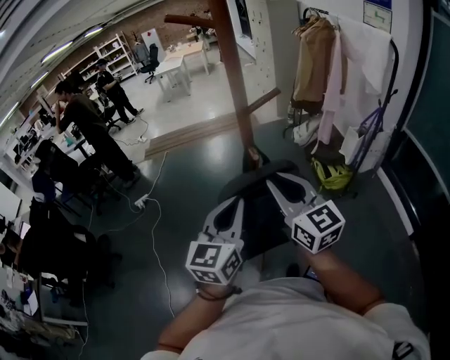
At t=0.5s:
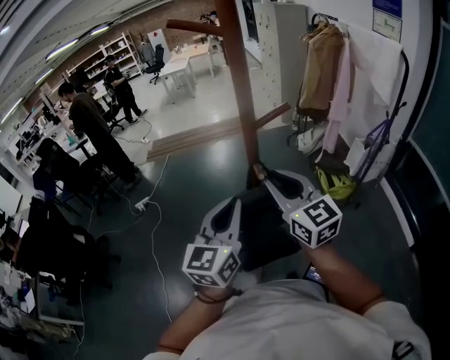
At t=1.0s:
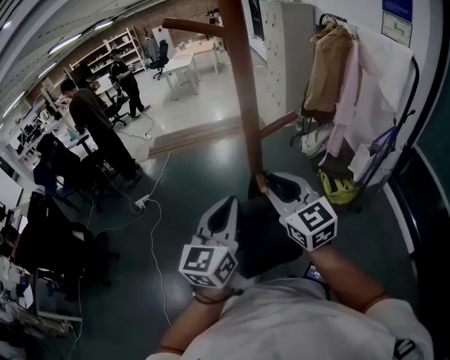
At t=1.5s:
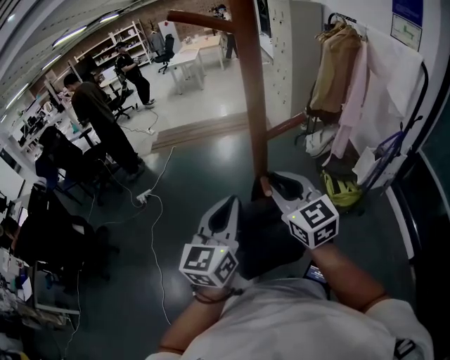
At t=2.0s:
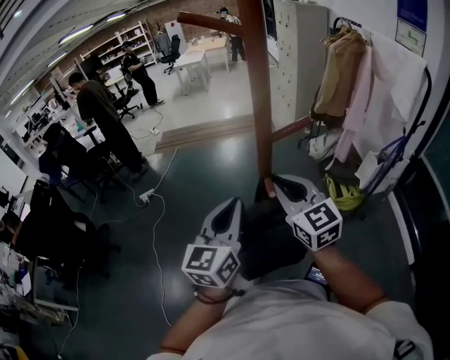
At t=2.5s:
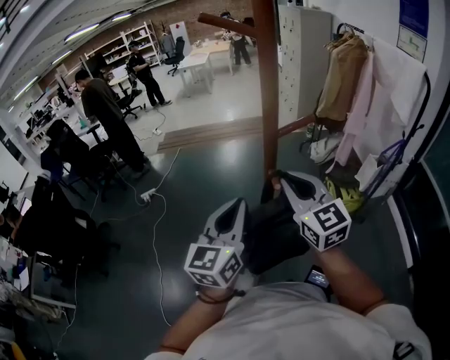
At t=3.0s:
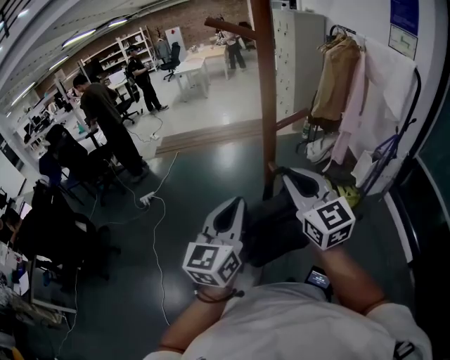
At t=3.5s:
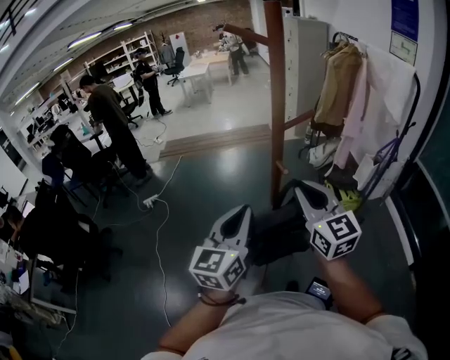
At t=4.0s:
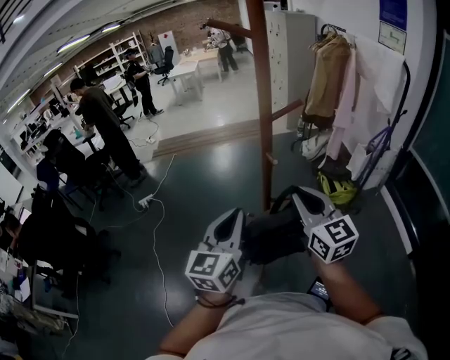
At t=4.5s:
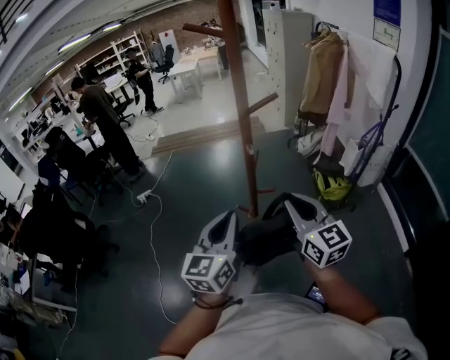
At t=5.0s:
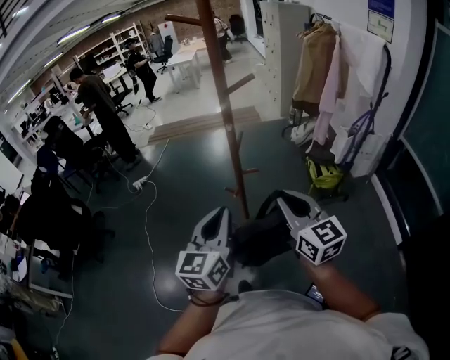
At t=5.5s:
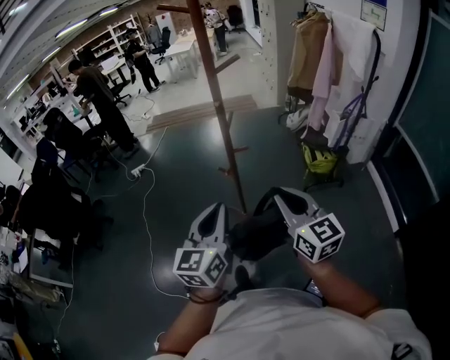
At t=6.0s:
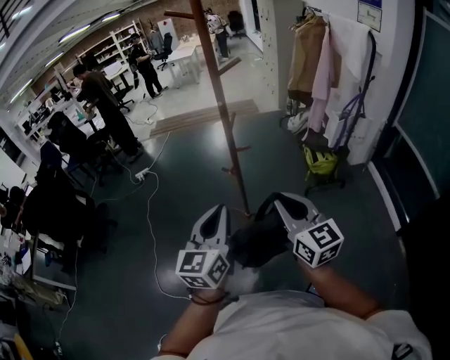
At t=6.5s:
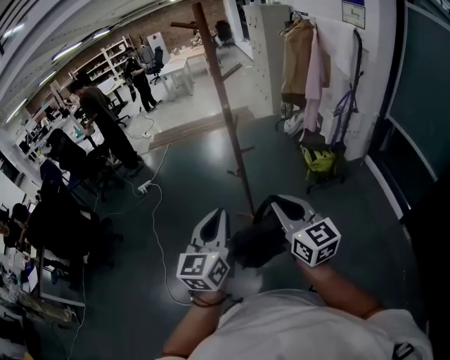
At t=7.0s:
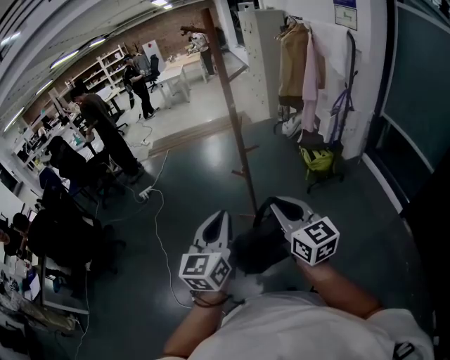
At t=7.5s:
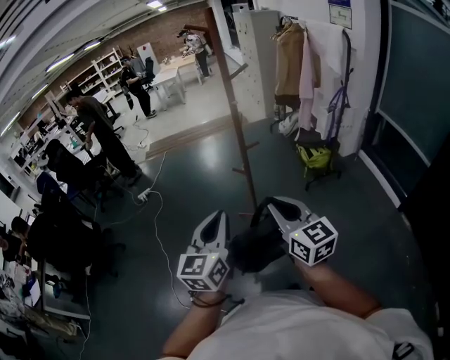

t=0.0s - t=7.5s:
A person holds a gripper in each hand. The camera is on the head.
t=0.0s - t=2.0s: Both grippers travel together forward, about 10 cm.
t=2.0s - t=4.0s: Both grippers travel together backward, some 15 cm.
t=4.0s - t=5.5s: The grippers both shift backward and to the right by roughly 25 cm.
t=5.5s - t=7.5s: Both grippers travel together to the left and backward, about 20 cm.

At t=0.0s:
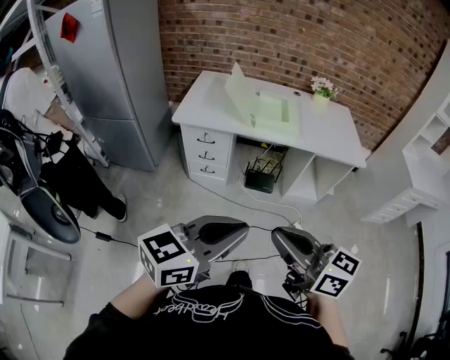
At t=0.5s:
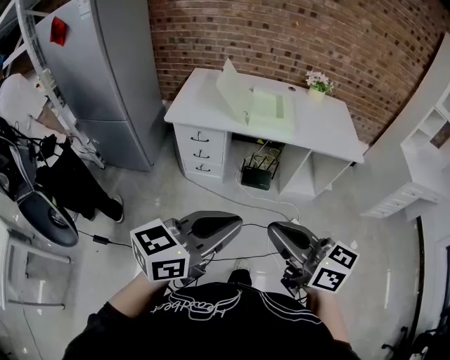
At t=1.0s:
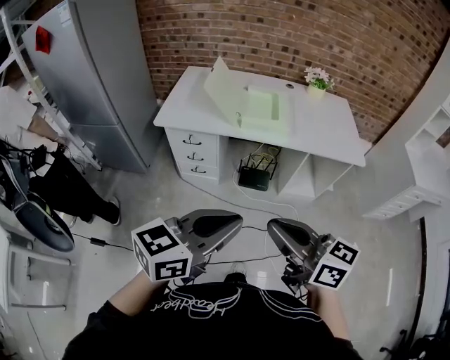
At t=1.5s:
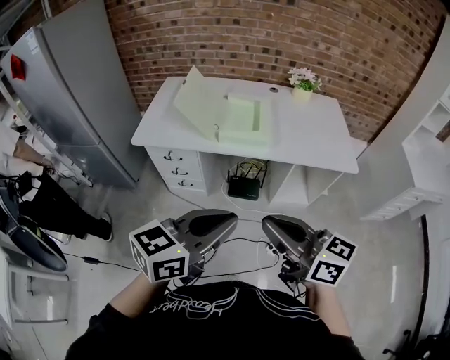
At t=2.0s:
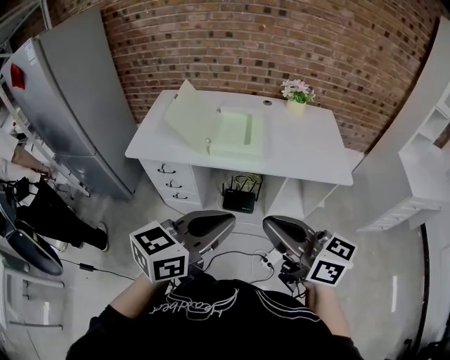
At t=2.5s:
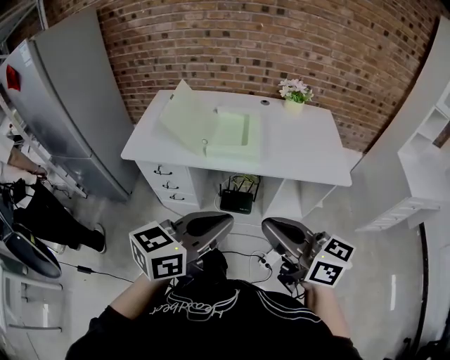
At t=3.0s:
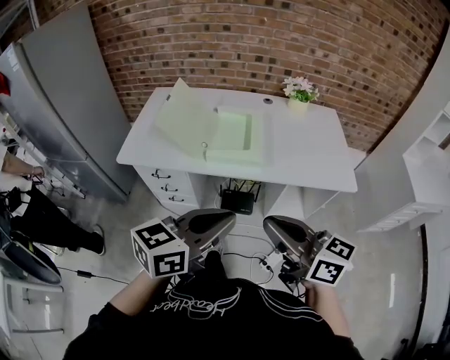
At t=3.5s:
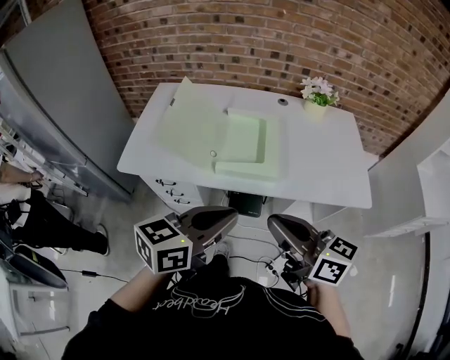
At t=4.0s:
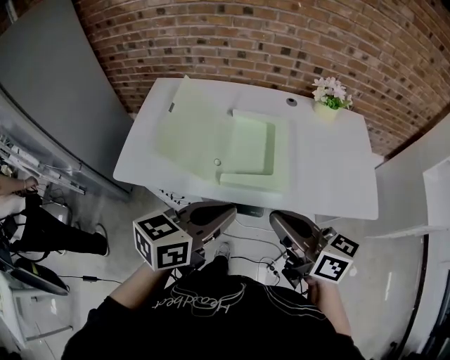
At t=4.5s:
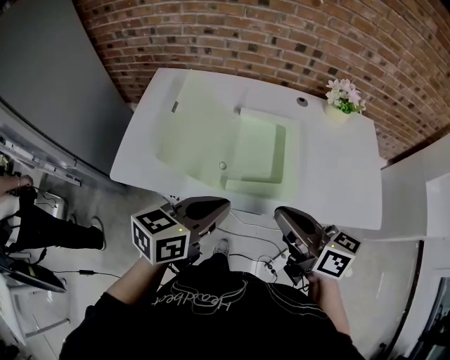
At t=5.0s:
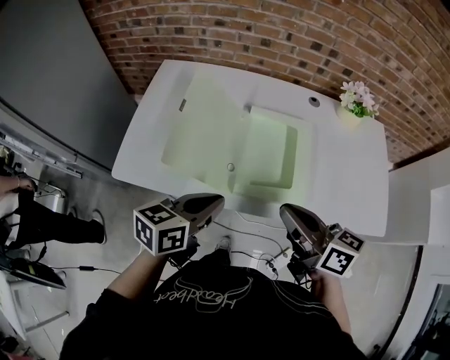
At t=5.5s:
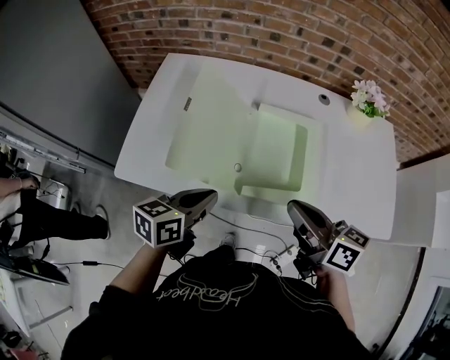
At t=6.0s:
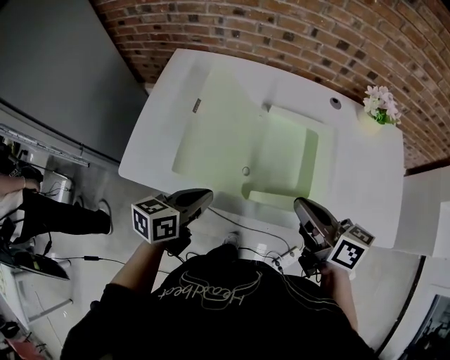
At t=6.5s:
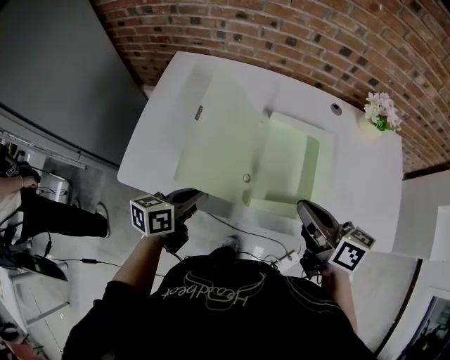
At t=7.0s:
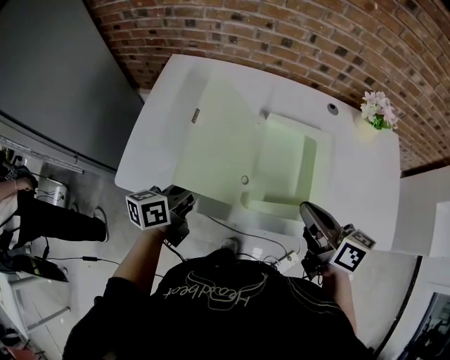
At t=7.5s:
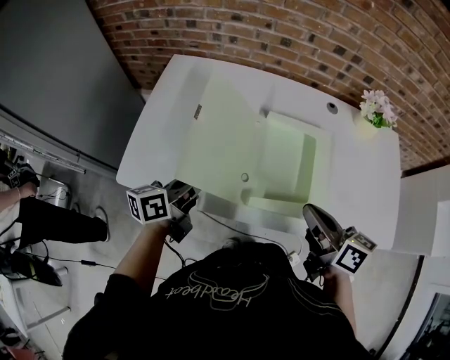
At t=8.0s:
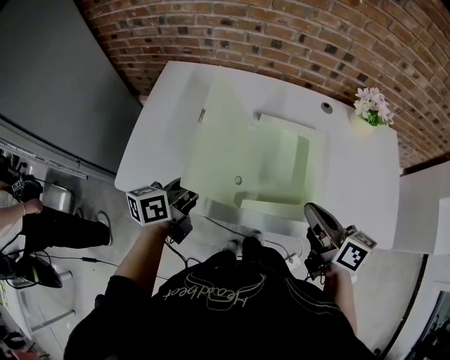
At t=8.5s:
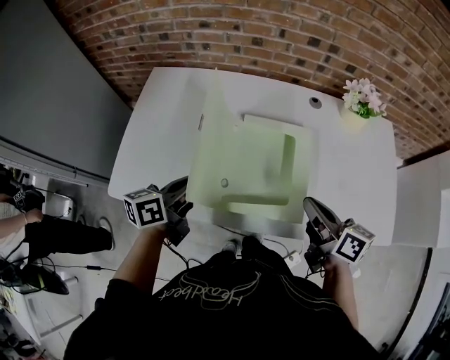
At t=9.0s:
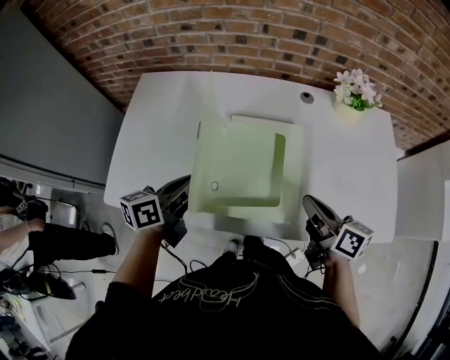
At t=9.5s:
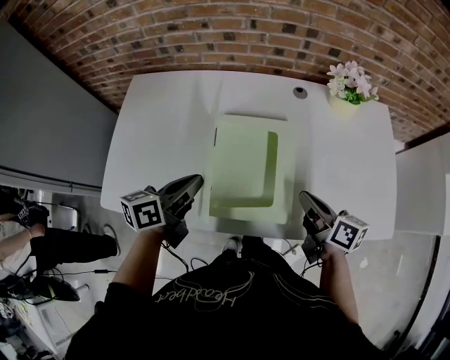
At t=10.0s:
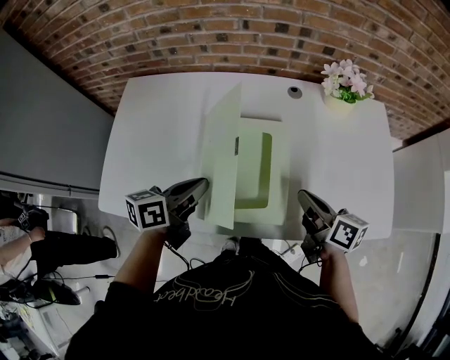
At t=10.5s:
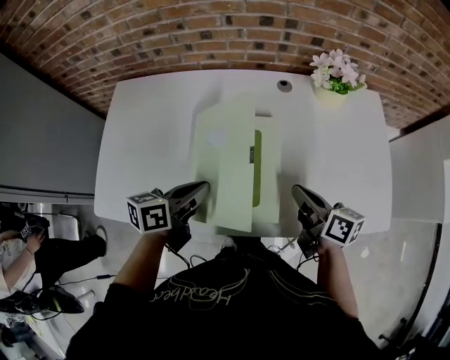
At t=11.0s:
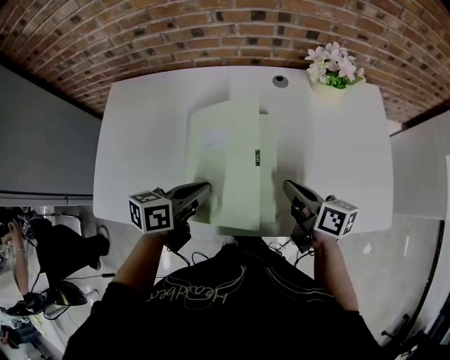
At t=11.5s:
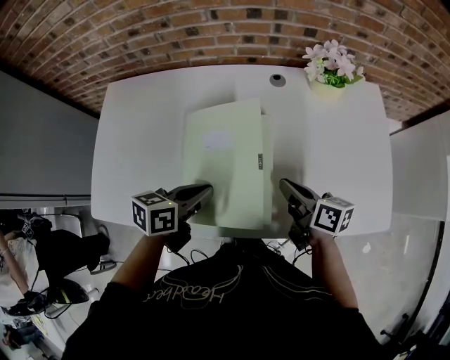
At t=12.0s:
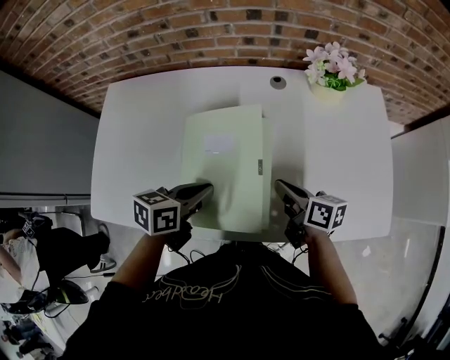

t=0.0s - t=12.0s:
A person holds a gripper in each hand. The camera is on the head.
t=0.0s - t=2.0s: Both grippers travel together forward and to the right, some 25 cm.
t=2.0s - t=4.0s: The two grippers go about 25 cm forward.
t=4.0s - t=6.0s: The right gripper travels forward and downward by approximately 15 cm, while the left gripper moves downward, to the left and forward, some 25 cm, and turns by about 20 degrees.
t=6.0s - t=8.0s: The right gripper is displaced to the right by about 5 cm. The left gripper shifts about 5 cm forward.
t=8.0s - t=10.0s: The left gripper is displaced to the right by some 10 cm, while the right gripper heads to the right, downward and forward, covering roughly 15 cm.
t=10.0s - t=12.0s: The left gripper goes some 5 cm to the right. The right gripper is displaced downward by approximately 5 cm.

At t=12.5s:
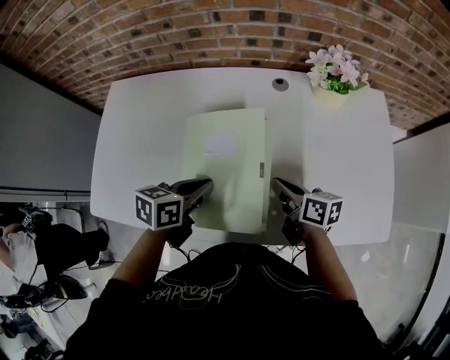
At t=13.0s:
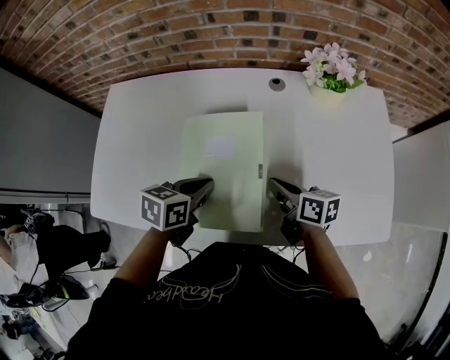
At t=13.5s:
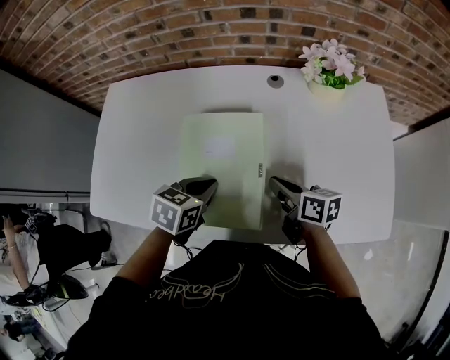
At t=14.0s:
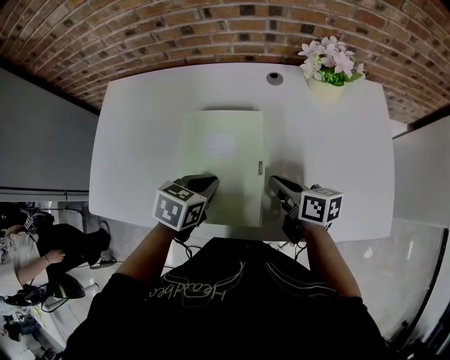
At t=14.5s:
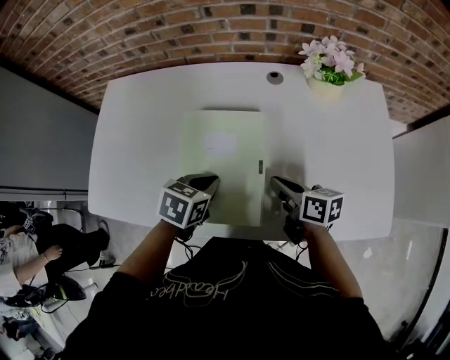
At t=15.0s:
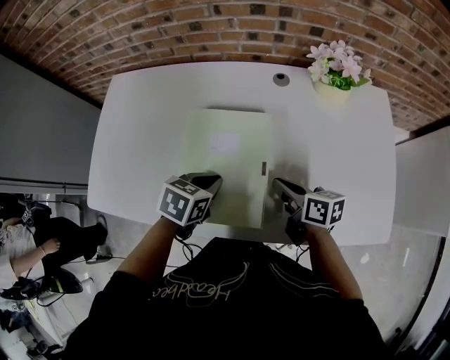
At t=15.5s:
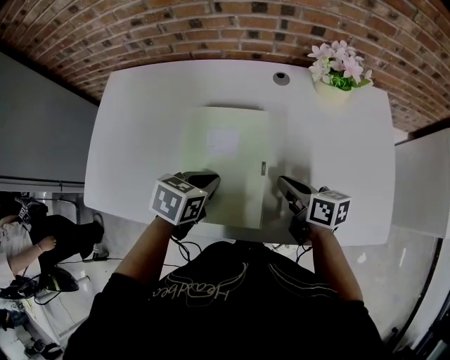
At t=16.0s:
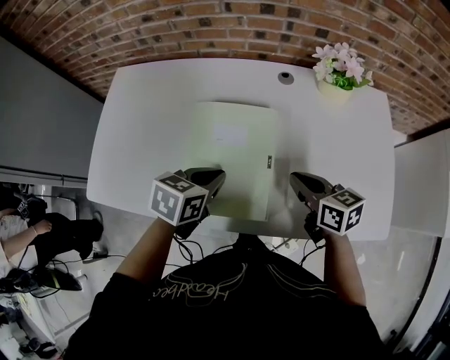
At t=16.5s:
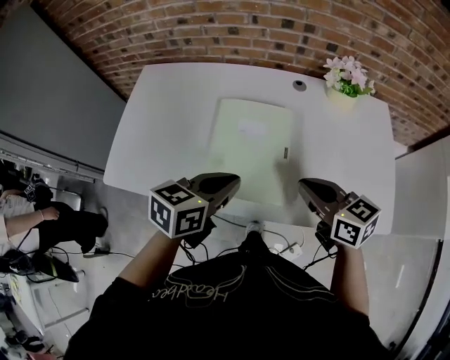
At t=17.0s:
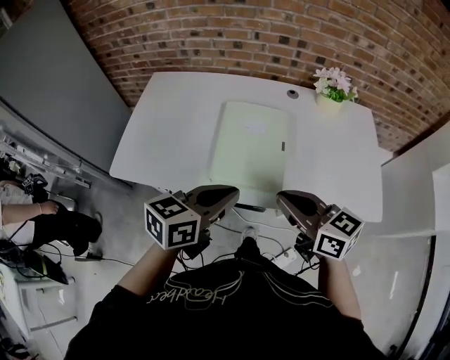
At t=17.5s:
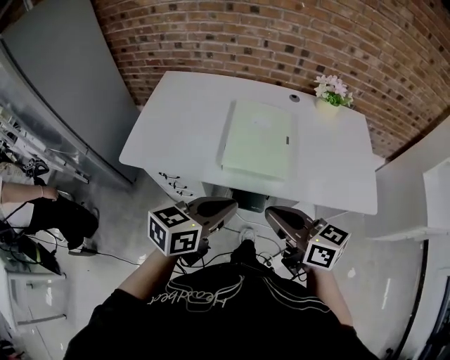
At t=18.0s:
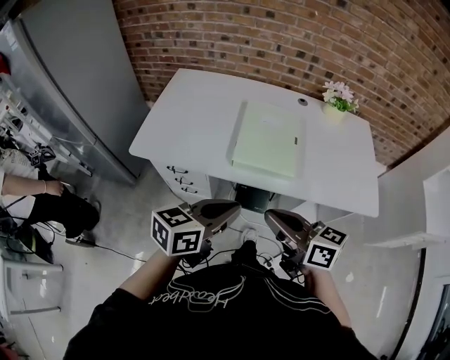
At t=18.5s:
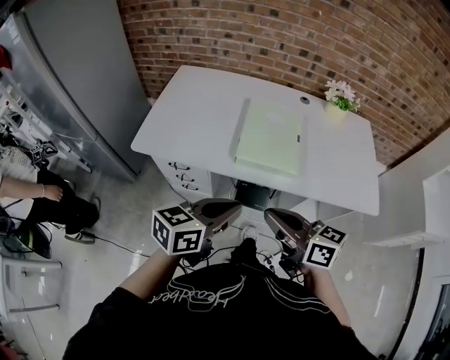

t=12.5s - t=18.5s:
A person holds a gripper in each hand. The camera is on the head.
t=12.5s - t=14.5s: The left gripper rotates some 20 degrees.
t=14.5s - t=16.5s: Both grippers travel together upward and backward, some 15 cm. The right gripper changes its angle by roughly 30 degrees. Meanwhile the left gripper changes its angle by approximately 30 degrees.
t=16.5s - t=18.5s: The left gripper shifts about 25 cm backward, while the right gripper shifts some 30 cm backward and to the left.

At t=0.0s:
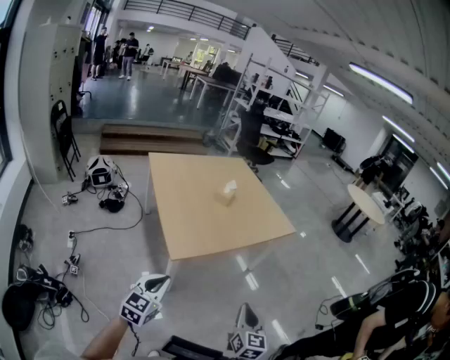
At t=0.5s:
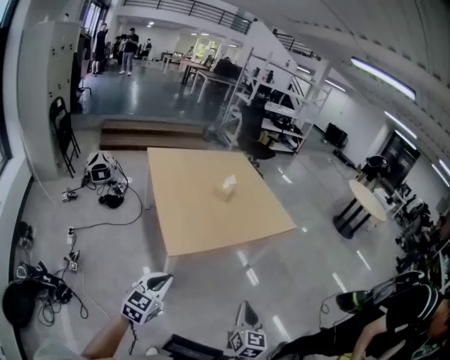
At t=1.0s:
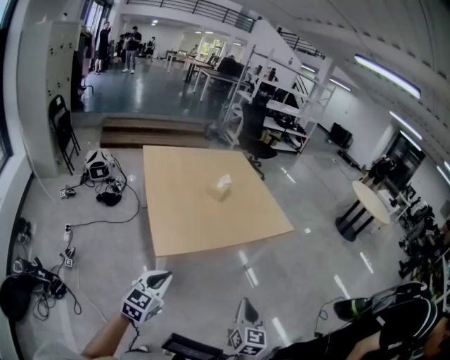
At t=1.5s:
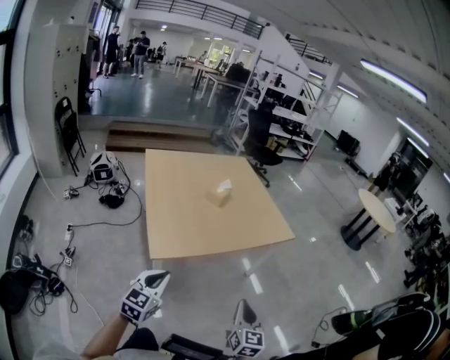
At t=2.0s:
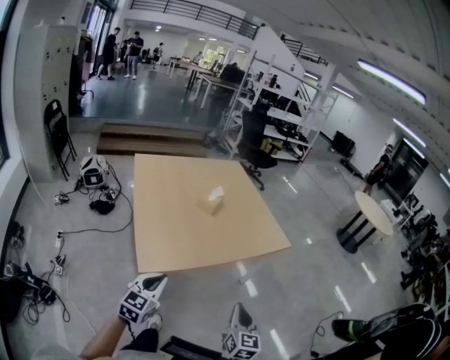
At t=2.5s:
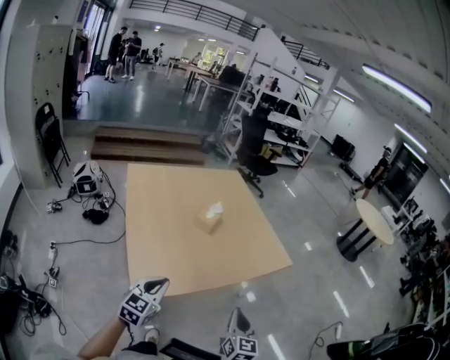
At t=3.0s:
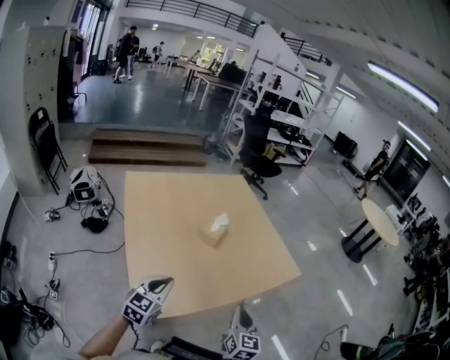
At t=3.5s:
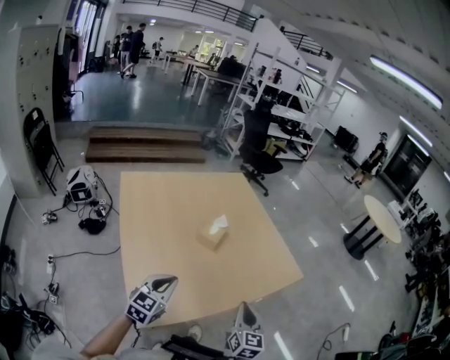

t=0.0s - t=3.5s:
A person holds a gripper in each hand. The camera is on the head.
t=0.0s - t=2.0s: Both grippers travel together forward and to the right, approximately 20 cm.
t=2.0s - t=3.5s: Both grippers move forward, approximately 25 cm.
